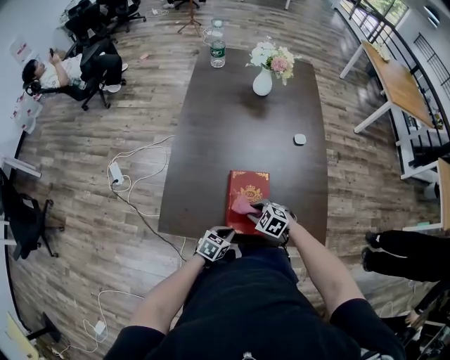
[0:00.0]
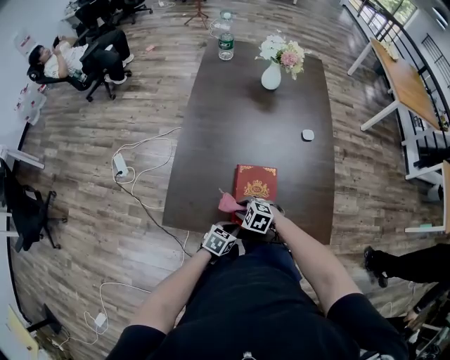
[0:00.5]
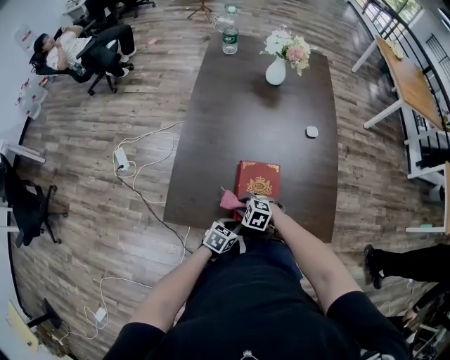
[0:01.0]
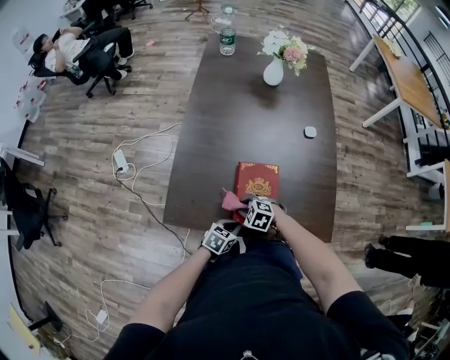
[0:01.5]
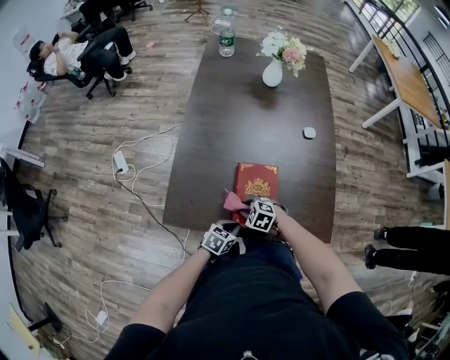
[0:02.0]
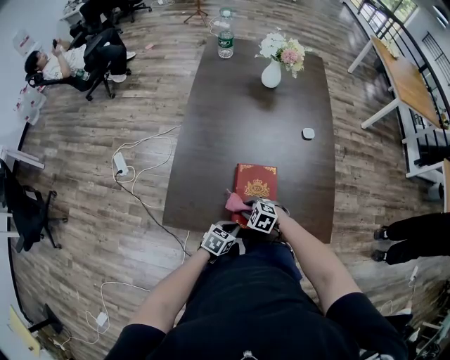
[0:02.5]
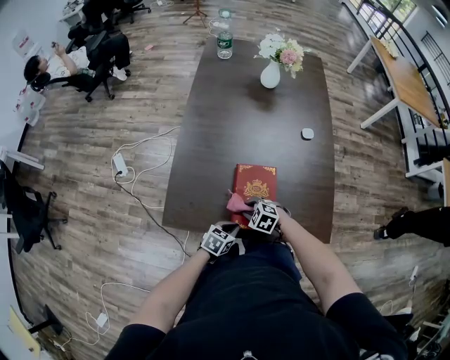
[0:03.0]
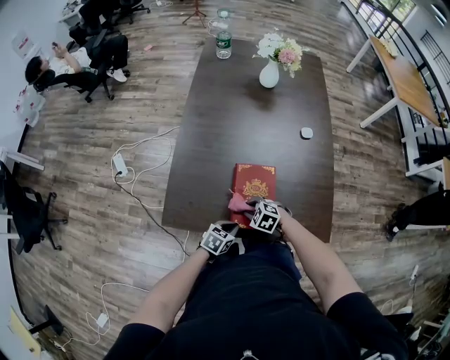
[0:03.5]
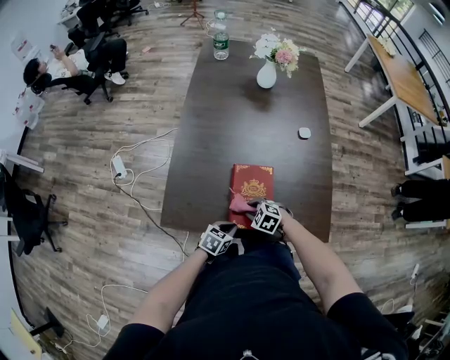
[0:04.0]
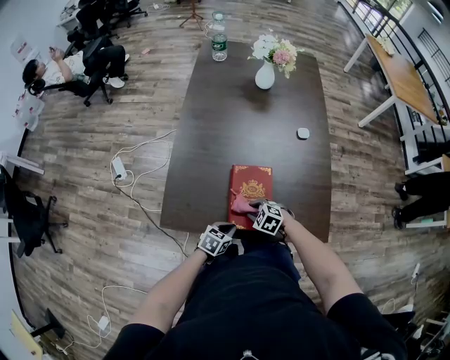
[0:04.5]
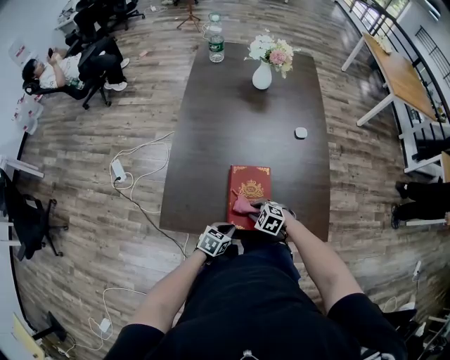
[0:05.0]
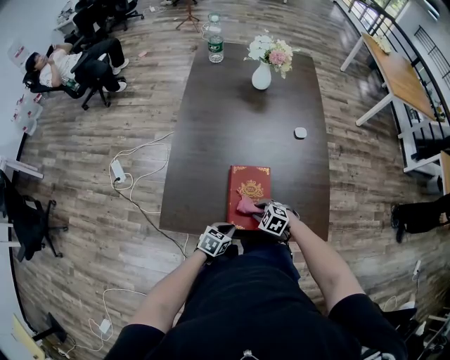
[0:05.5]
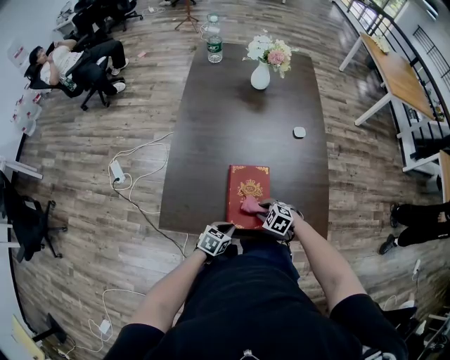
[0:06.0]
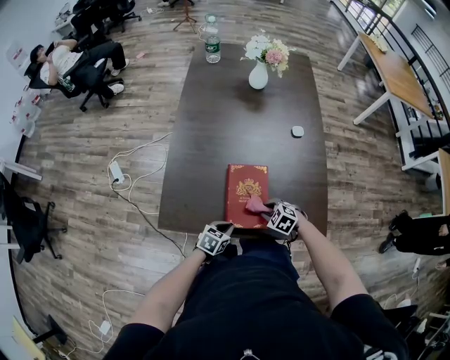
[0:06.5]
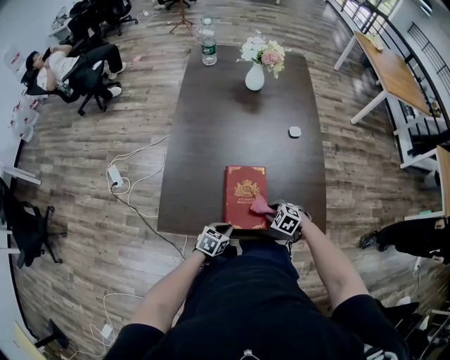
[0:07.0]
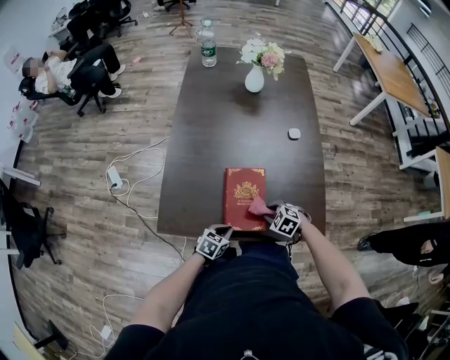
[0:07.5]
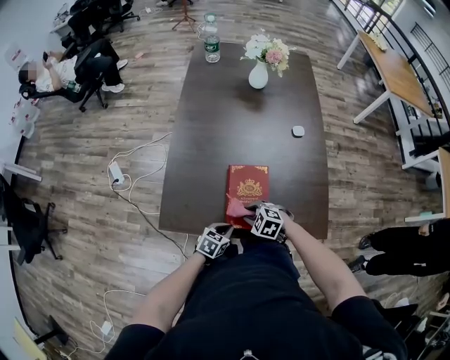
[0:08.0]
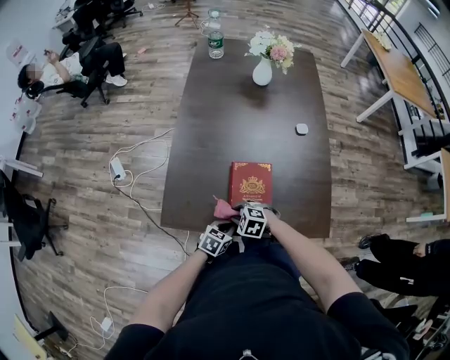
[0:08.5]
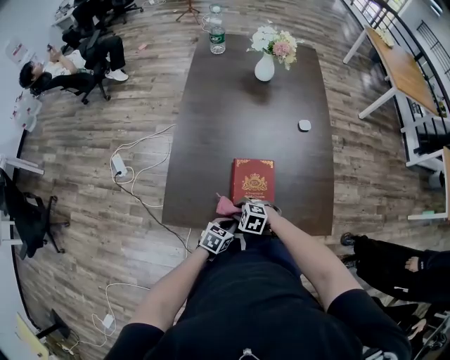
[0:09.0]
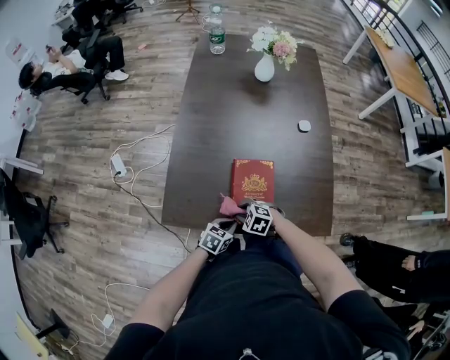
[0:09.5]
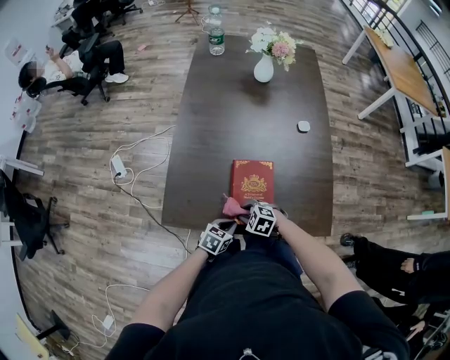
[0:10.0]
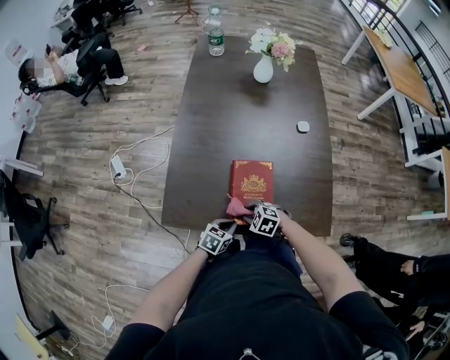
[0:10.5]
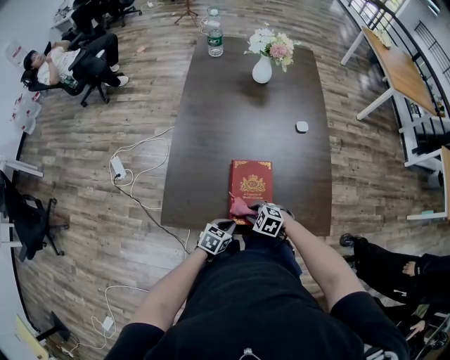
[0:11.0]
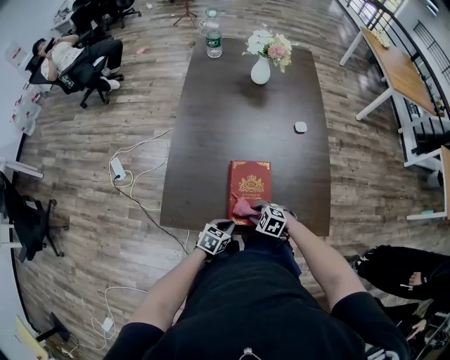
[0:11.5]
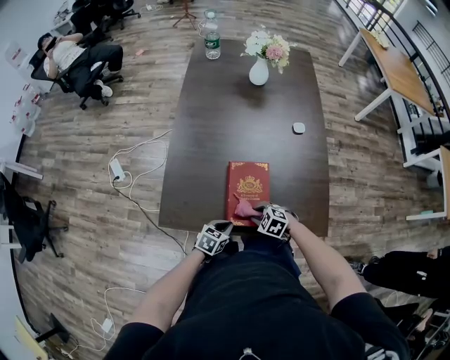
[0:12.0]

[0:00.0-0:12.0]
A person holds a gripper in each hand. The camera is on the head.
0:00.0 to 0:02.0: The right gripper shifts by some 5 cm.
0:02.0 to 0:04.0: The grippers move only a little.
0:04.0 to 0:06.0: The right gripper ends up approximately 5 cm from where it was.
0:06.0 to 0:08.0: The right gripper moves about 5 cm.
0:08.0 to 0:10.0: The right gripper shifts by about 5 cm.
0:10.0 to 0:12.0: The right gripper shifts by roughly 5 cm.

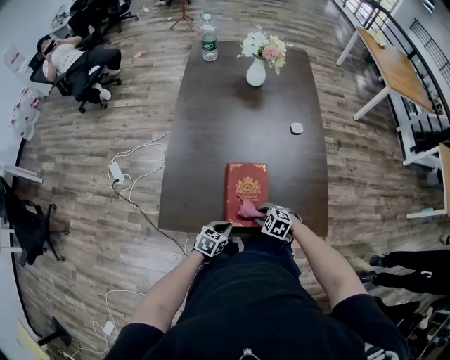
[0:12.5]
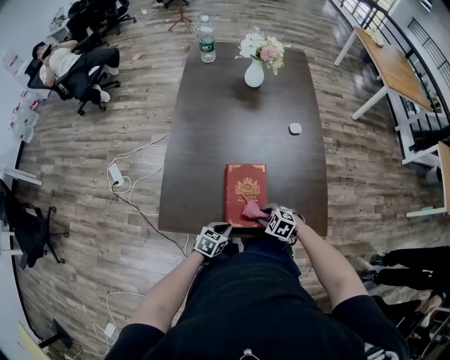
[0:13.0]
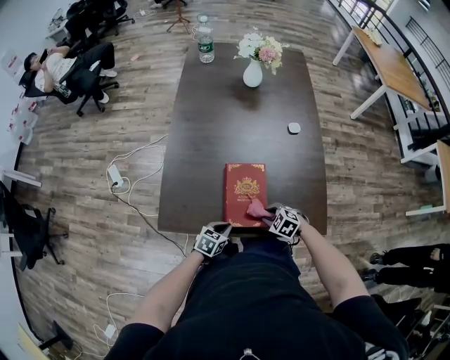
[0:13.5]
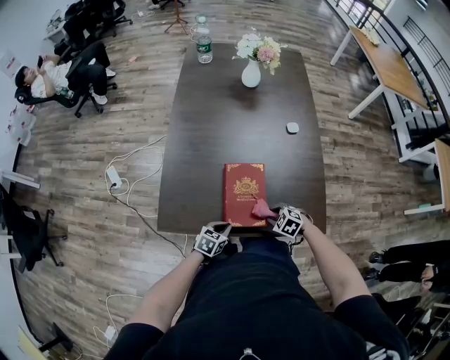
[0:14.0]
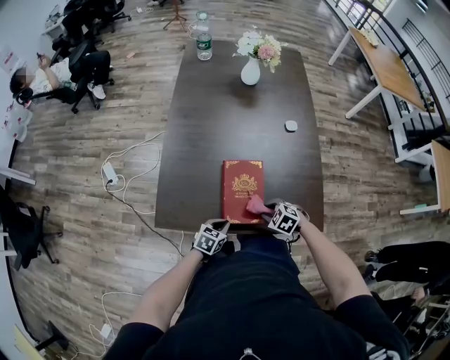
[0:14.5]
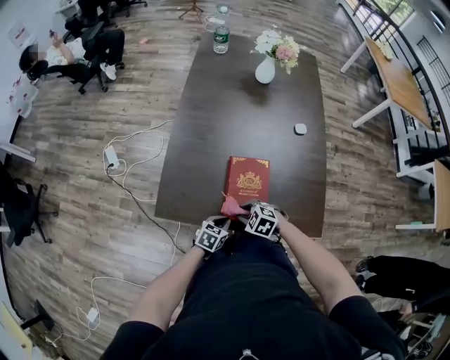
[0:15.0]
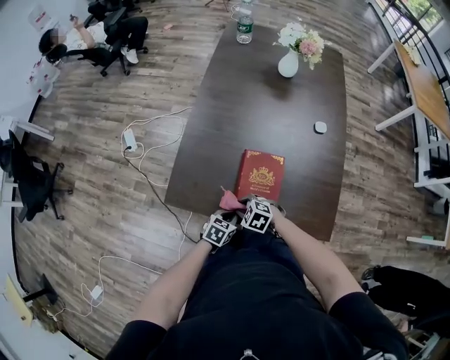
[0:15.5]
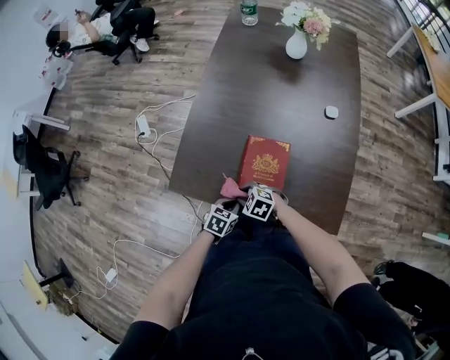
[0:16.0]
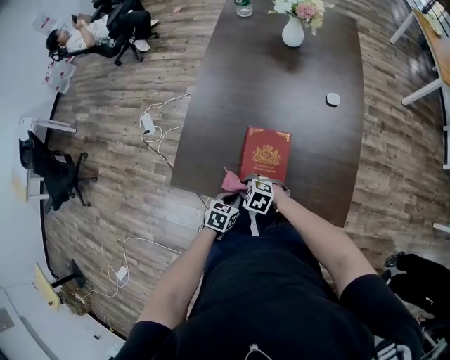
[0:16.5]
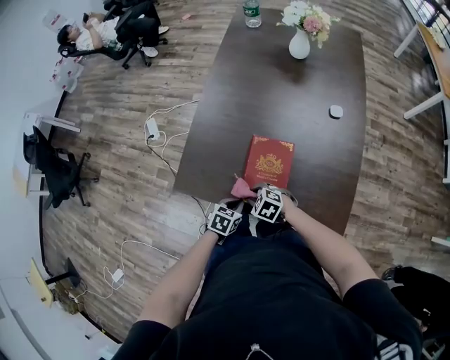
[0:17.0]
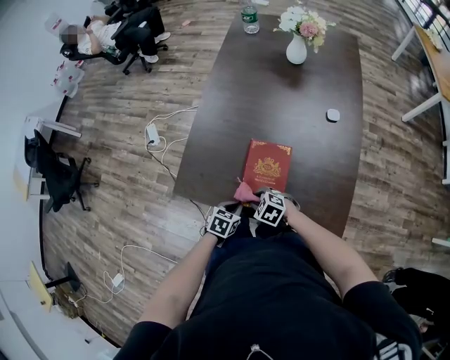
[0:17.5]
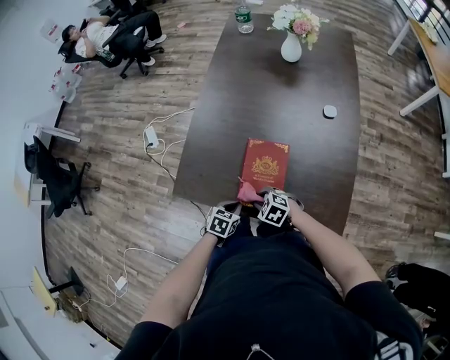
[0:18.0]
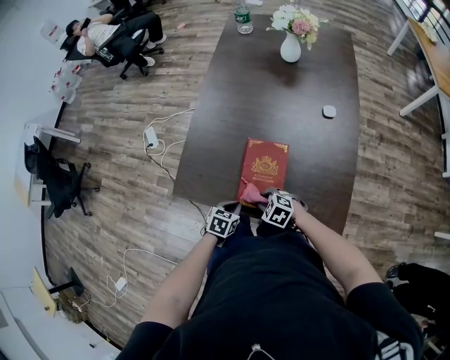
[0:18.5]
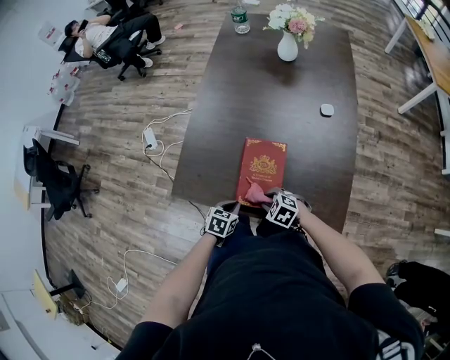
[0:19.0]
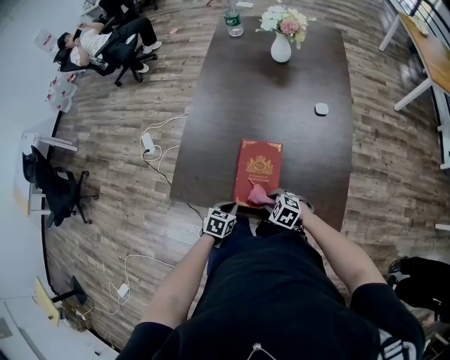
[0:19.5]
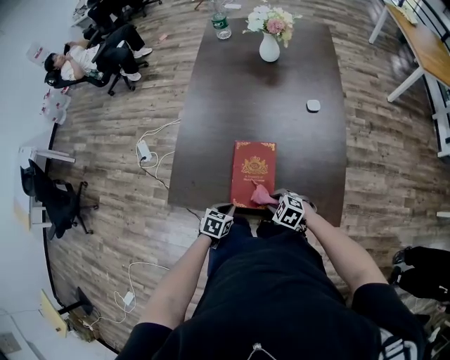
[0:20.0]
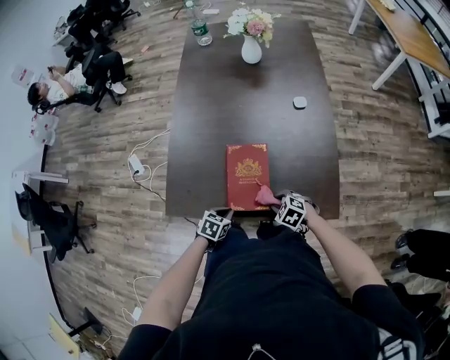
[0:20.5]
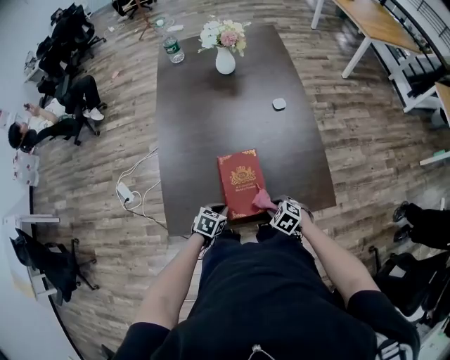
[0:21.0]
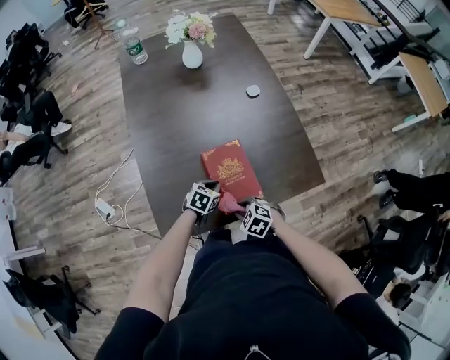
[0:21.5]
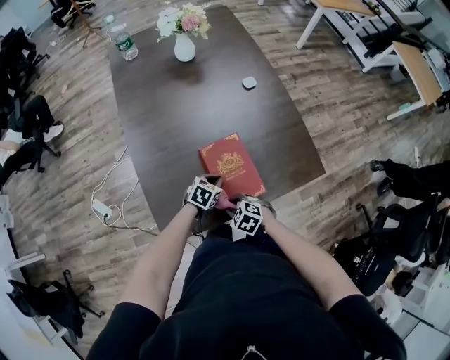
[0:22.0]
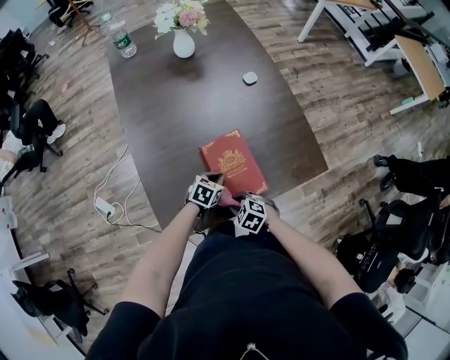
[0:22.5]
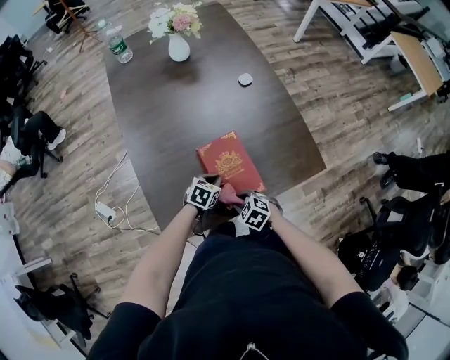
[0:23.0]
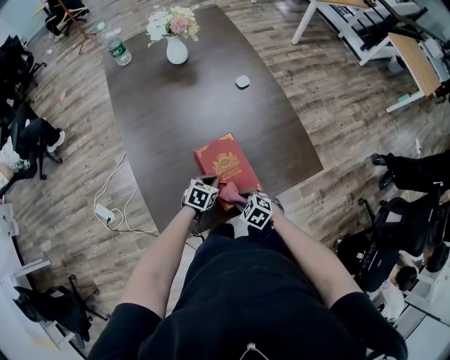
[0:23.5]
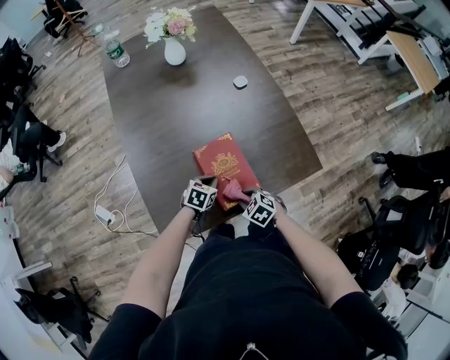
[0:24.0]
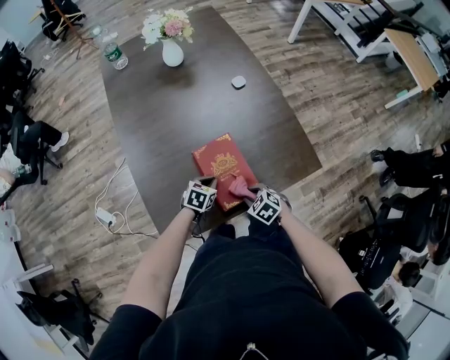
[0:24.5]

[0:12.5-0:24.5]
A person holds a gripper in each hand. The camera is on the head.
0:14.5 to 0:16.5: The right gripper ends up roughly 15 cm from where it was, and swivels roughly 20 degrees.
0:16.5 to 0:18.5: The right gripper shifts by roughly 10 cm.
0:18.5 to 0:20.5: The right gripper moves to the right, about 10 cm.
0:20.5 to 0:22.5: The left gripper ends up about 15 cm from where it was, and rotates approximately 30 degrees. The right gripper changes place by approximately 15 cm, and rotates roughly 20 degrees.
0:22.5 to 0:24.5: The right gripper heads to the right, covering approximately 10 cm.

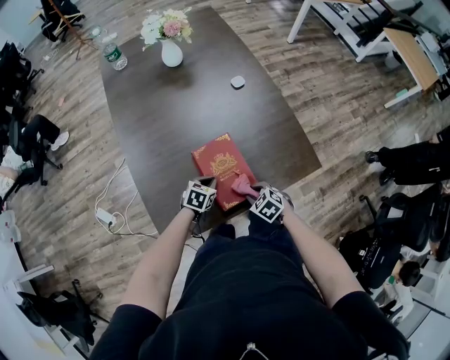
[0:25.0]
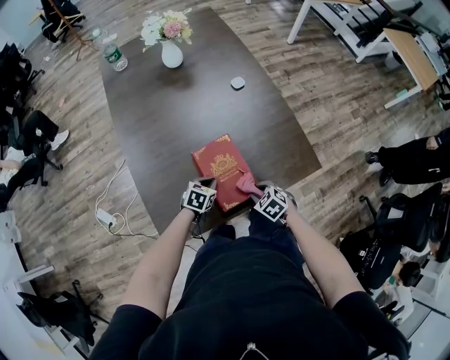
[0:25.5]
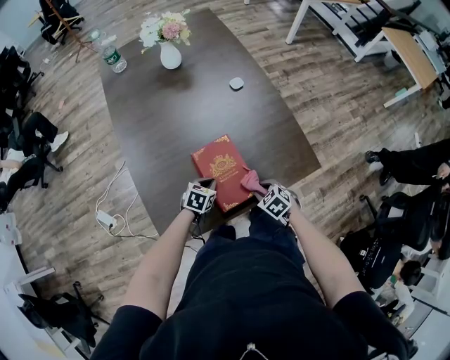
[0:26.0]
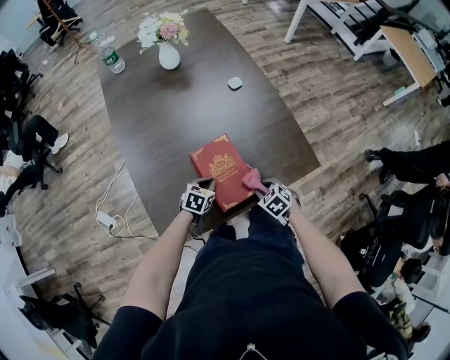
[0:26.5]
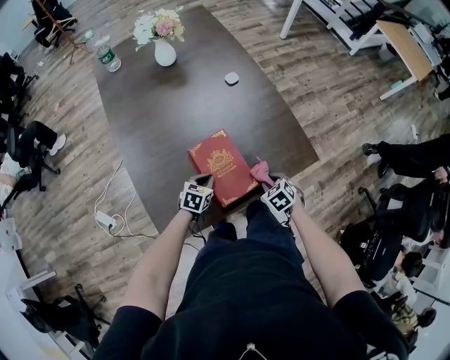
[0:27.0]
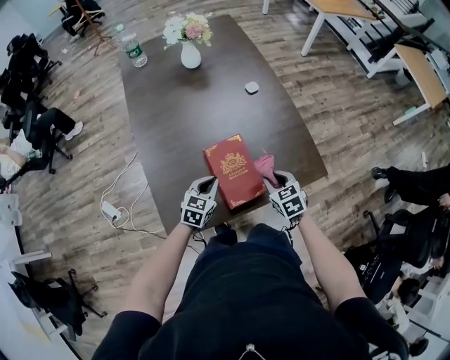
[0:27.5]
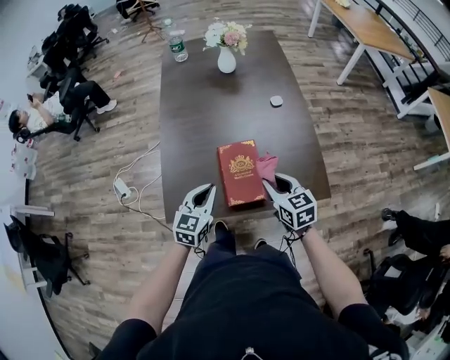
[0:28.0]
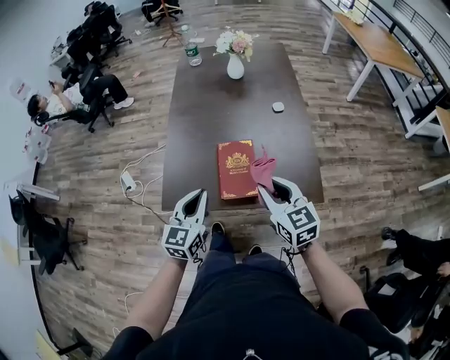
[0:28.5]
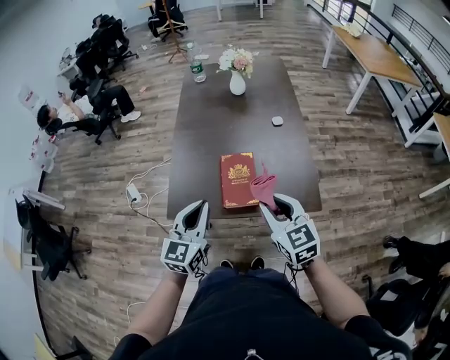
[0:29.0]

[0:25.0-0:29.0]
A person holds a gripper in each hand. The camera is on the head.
0:25.0 to 0:27.0: The right gripper moves to the right, approximately 10 cm.
0:27.0 to 0:29.0: The two grippers go about 35 cm upward. The right gripper angles its fingers upward, by approximately 50 degrees. Meanwhile the left gripper tips its fingers upward by about 40 degrees.
